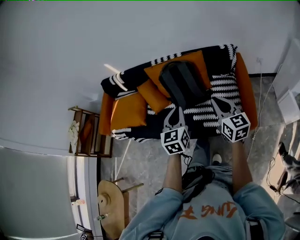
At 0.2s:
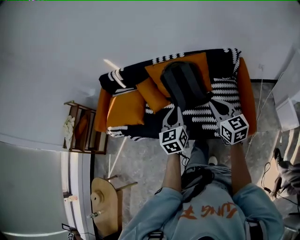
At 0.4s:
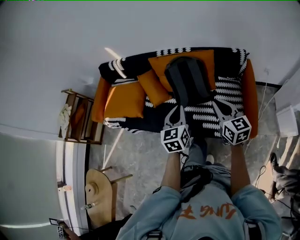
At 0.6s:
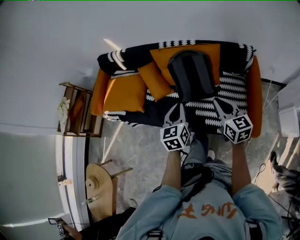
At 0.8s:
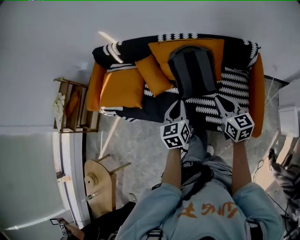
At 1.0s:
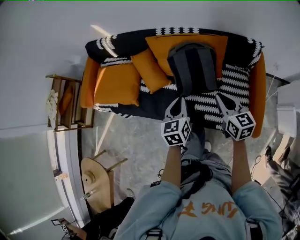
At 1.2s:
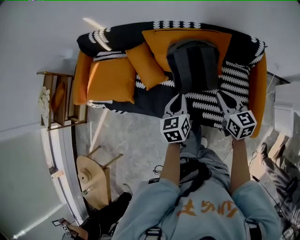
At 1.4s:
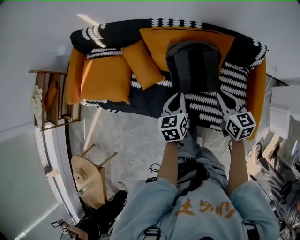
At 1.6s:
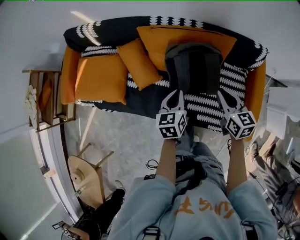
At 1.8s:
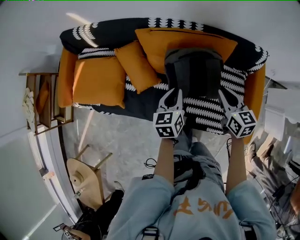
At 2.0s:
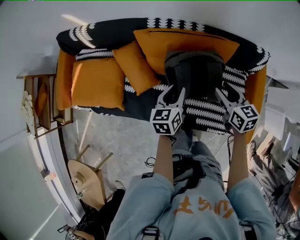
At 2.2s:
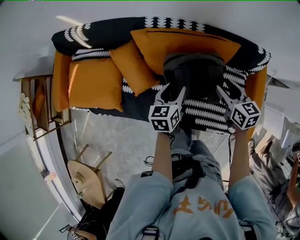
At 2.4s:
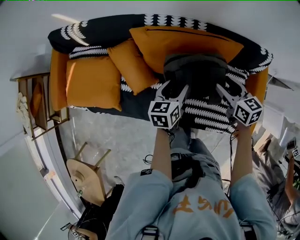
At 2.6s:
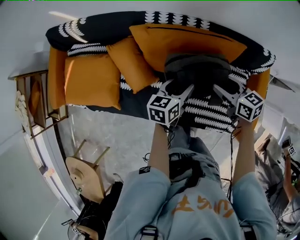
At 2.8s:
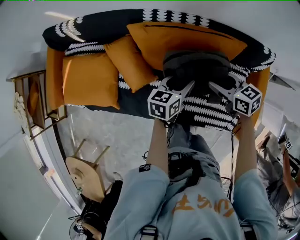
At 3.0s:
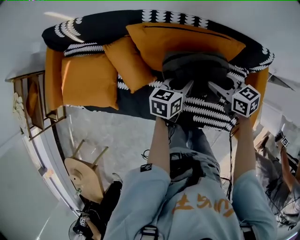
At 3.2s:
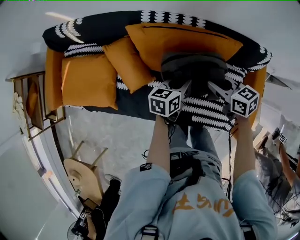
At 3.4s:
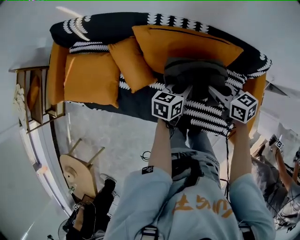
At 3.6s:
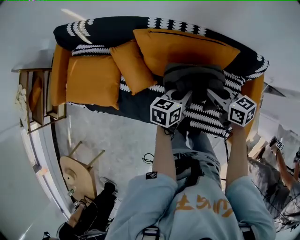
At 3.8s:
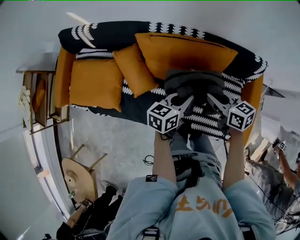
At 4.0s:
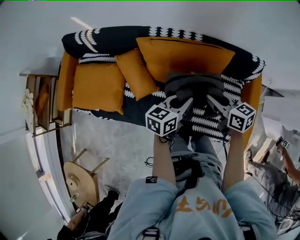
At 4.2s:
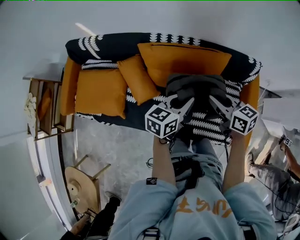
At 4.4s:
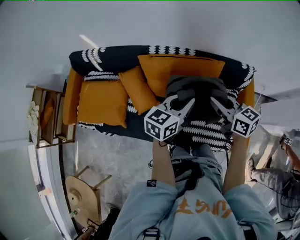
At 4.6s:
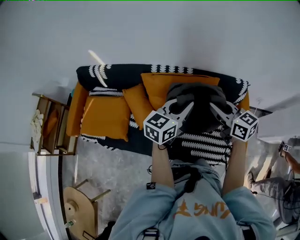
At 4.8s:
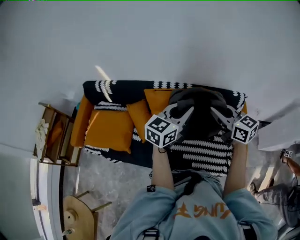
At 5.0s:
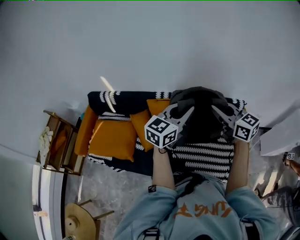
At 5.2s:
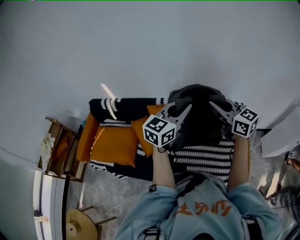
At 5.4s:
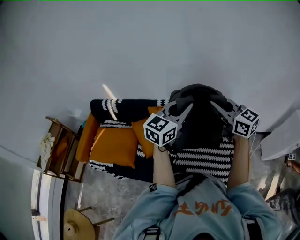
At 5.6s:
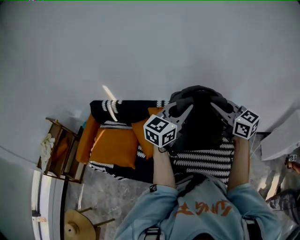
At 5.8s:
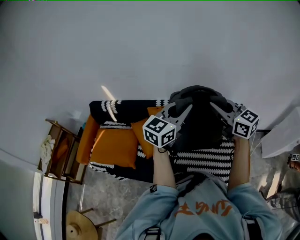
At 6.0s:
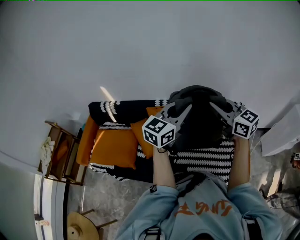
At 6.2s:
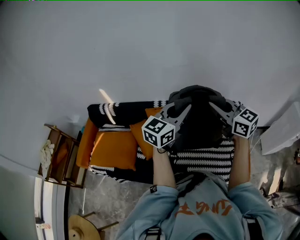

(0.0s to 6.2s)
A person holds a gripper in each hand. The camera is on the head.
0.0s - 1.6s: The grippers both shift forward and downward by about 30 cm. The left gripper rotates some 30 degrees. Meanwhile the right gripper swivels roughly 20 degrees.
1.6s - 3.2s: The right gripper goes approximately 15 cm forward and downward, changes its angle by about 30 degrees, and opens, then closes once more. Meanwhile the left gripper is displaced forward, downward and to the right by about 15 cm, rotates roughly 30 degrees, and opens, then closes once more.
3.2s - 4.6s: The grippers both shift upward by roughly 25 cm. The right gripper swivels some 30 degrees. Meanwhile the left gripper turns by about 30 degrees.
4.6s - 6.2s: The grippers both shift upward by roughly 15 cm. The right gripper swivels some 20 degrees.

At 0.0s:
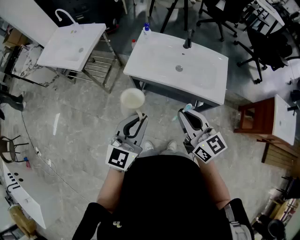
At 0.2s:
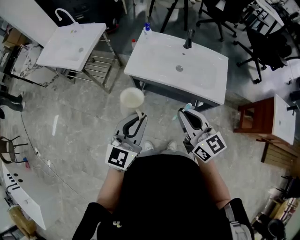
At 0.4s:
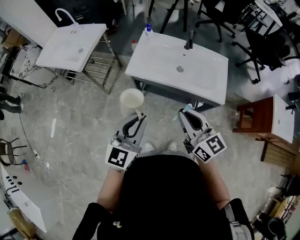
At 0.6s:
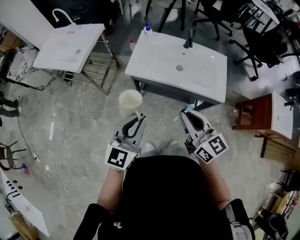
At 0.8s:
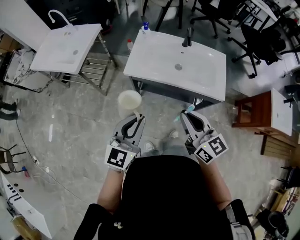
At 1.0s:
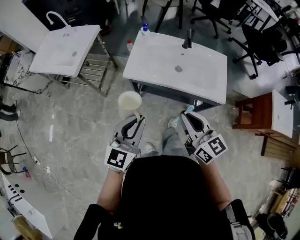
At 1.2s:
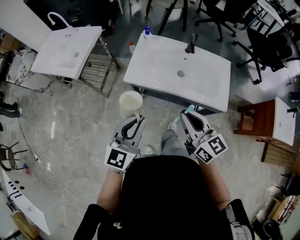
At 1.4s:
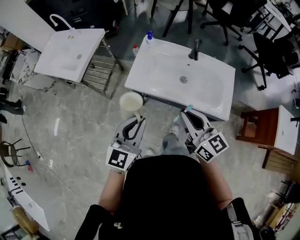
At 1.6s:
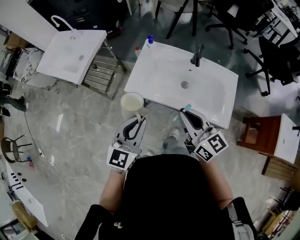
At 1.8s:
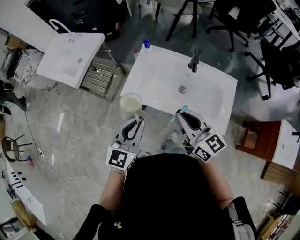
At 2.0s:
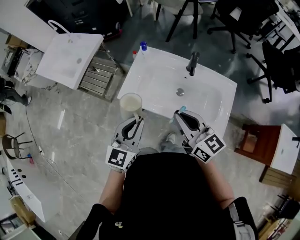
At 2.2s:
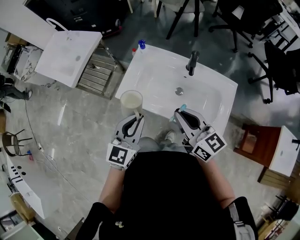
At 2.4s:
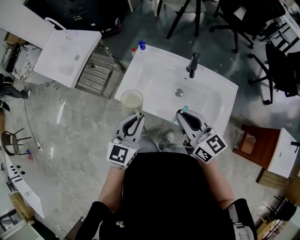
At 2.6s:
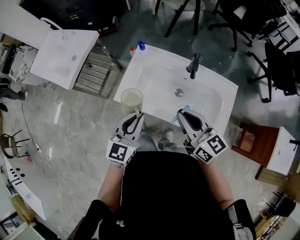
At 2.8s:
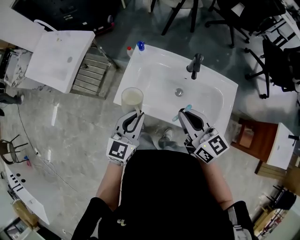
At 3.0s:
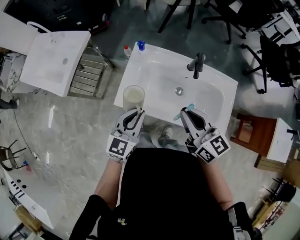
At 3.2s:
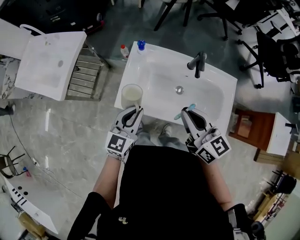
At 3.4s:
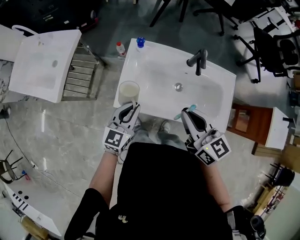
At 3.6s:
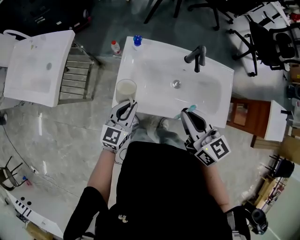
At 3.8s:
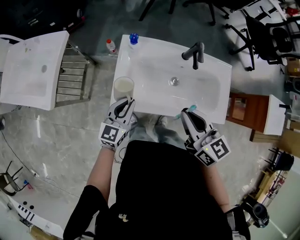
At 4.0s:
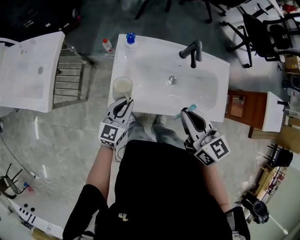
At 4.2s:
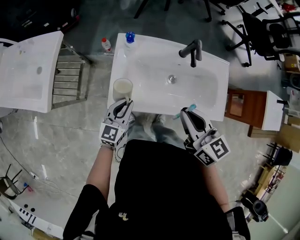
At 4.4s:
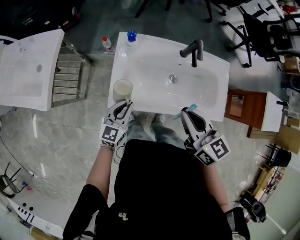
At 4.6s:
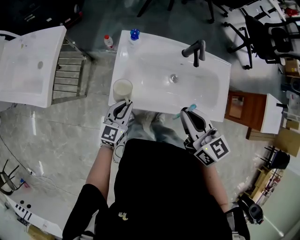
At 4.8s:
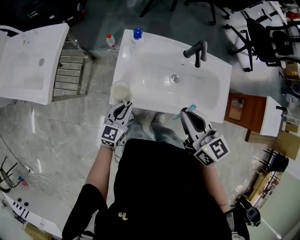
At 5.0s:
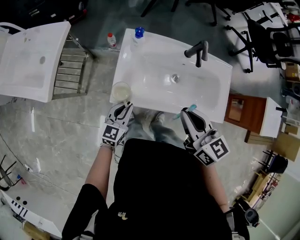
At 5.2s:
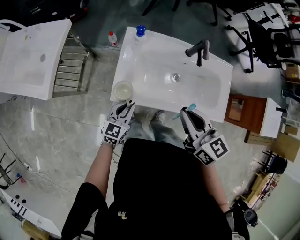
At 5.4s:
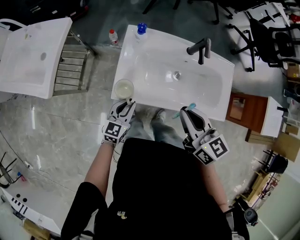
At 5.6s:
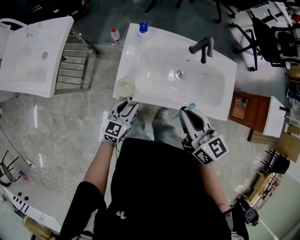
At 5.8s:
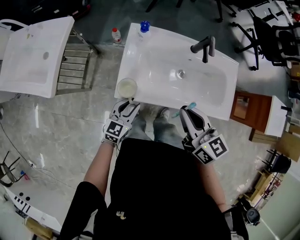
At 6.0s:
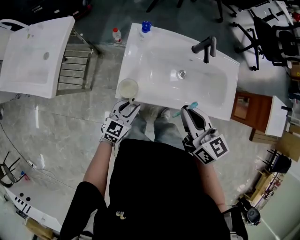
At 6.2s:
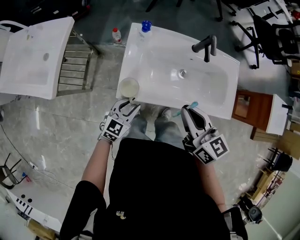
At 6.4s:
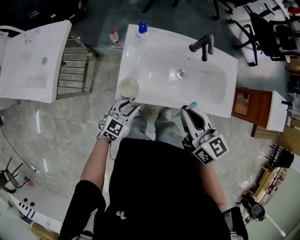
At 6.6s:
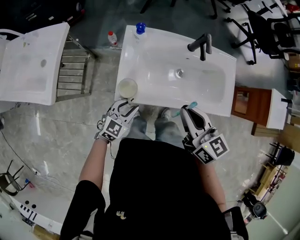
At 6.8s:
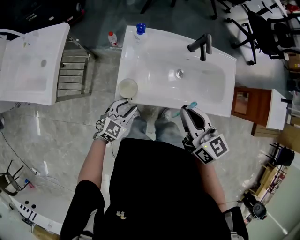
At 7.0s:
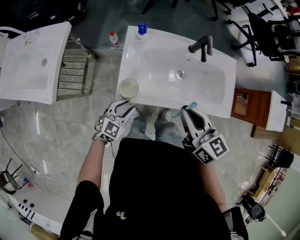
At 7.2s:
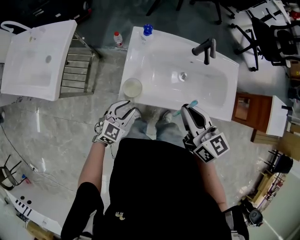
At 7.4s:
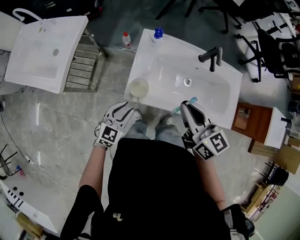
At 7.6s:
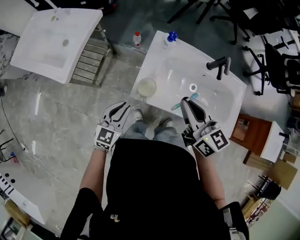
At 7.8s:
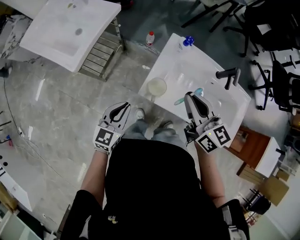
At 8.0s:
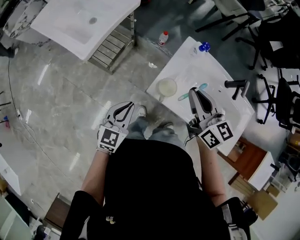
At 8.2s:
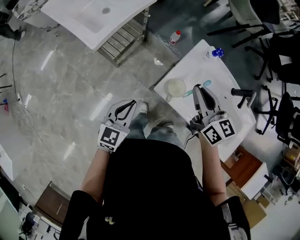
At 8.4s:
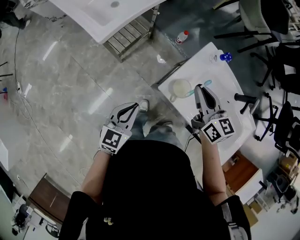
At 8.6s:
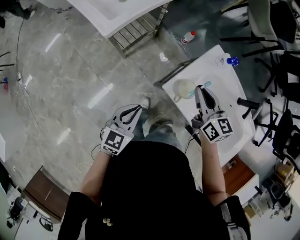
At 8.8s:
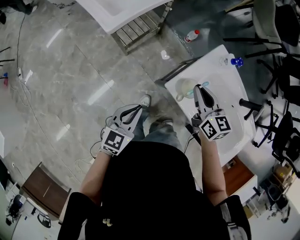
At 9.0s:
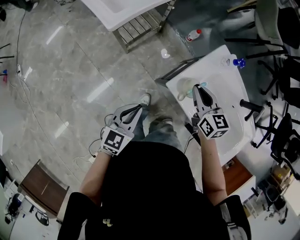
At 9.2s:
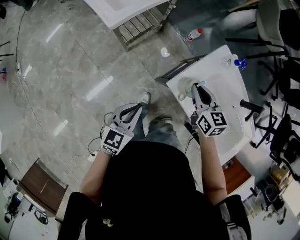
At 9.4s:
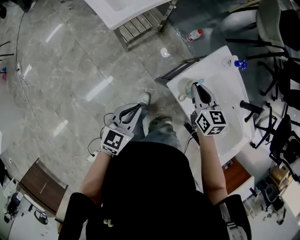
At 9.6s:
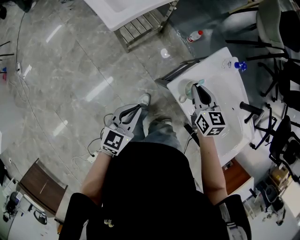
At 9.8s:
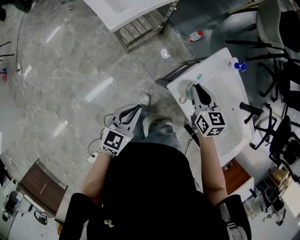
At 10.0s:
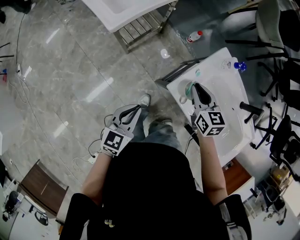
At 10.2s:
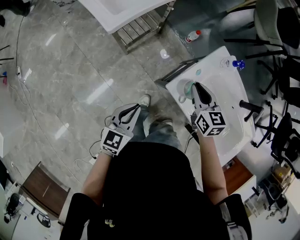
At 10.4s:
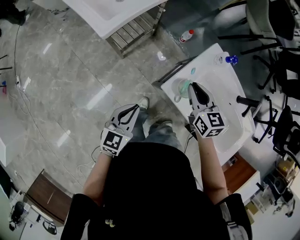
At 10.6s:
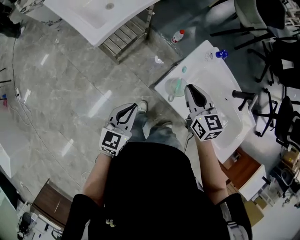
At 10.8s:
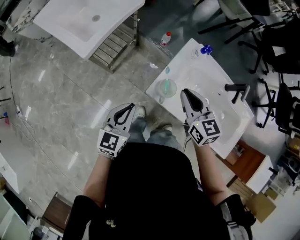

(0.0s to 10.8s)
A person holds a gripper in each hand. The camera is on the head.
0.0s - 1.6s: The two grippers go approximately 15 cm forward.
1.6s - 3.0s: The left gripper heads forward and downward, covering some 15 cm. Meanwhile the right gripper goes approximately 10 cm forward.
3.0s - 4.6s: The right gripper shifts by some 5 cm. Meanwhile the left gripper moves downward and to the left, roughly 15 cm.
4.6s - 6.2s: The left gripper ends up about 5 cm from where it was.
6.2s - 7.8s: The left gripper moves about 15 cm, and swivels about 30 degrees, while the right gripper changes place by roughly 10 cm.
7.8s - 9.2s: The right gripper moves downward and to the left, some 20 cm, and swivels roughly 20 degrees, while the left gripper moves backward and to the left, approximately 10 cm.
9.2s - 10.8s: The right gripper travels upward by some 10 cm; the left gripper travels forward by some 5 cm.

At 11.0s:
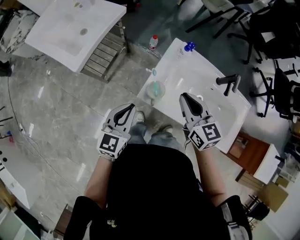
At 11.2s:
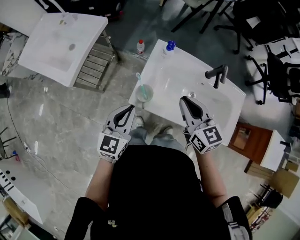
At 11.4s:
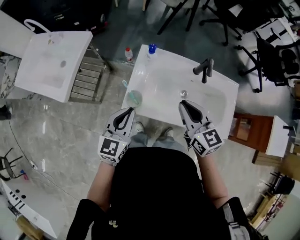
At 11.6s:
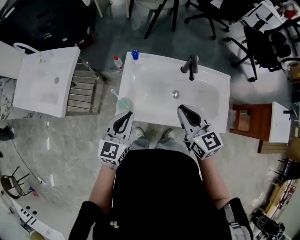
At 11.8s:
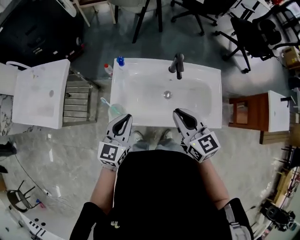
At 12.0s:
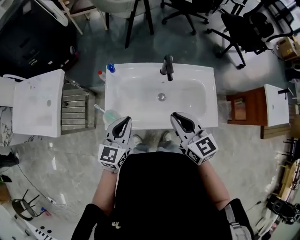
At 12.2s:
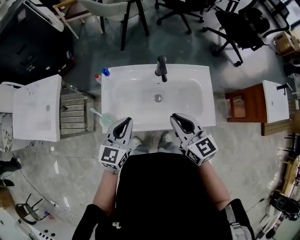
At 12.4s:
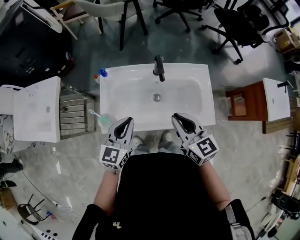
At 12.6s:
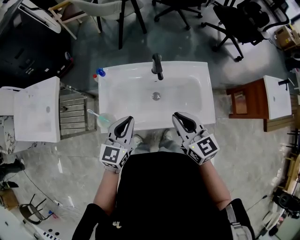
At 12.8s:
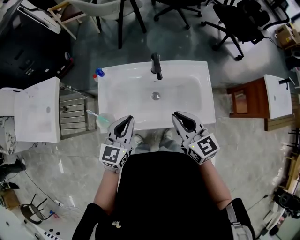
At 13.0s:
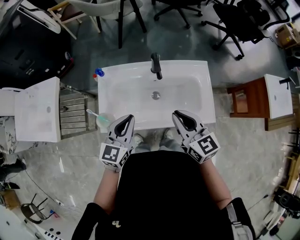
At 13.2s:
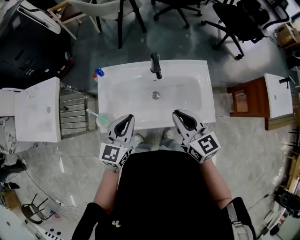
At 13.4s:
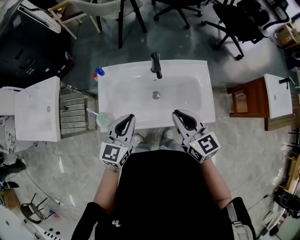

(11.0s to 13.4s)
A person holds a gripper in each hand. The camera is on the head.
11.0s - 12.2s: Both grippers move to the right, some 20 cm. The right gripper swivels roughly 20 degrees, while the left gripper rotates about 30 degrees.
12.2s - 13.4s: The grippers stay close to where they were, moving slightly.

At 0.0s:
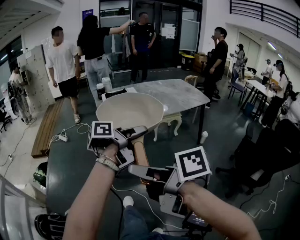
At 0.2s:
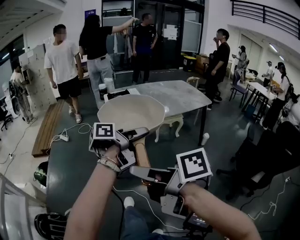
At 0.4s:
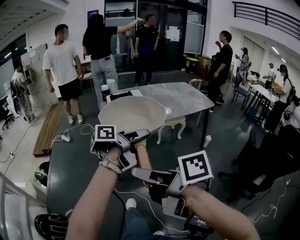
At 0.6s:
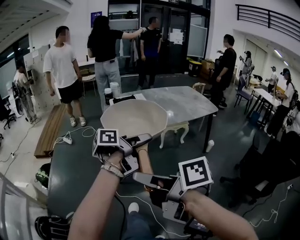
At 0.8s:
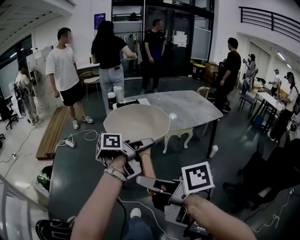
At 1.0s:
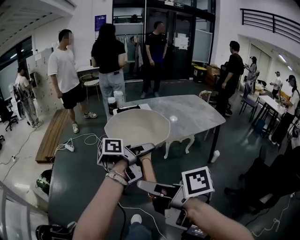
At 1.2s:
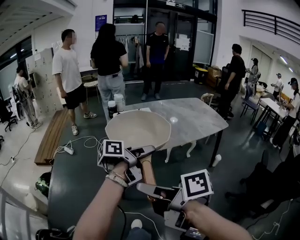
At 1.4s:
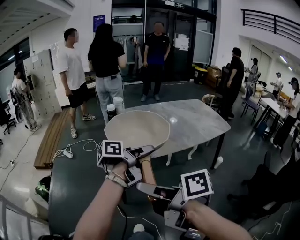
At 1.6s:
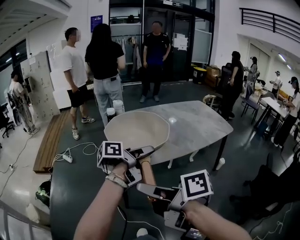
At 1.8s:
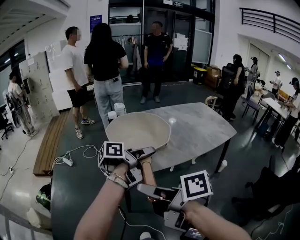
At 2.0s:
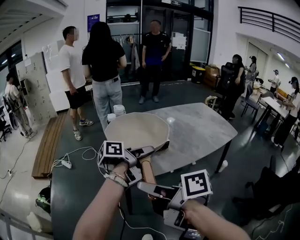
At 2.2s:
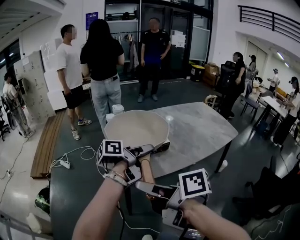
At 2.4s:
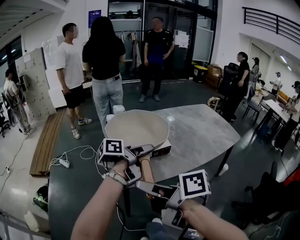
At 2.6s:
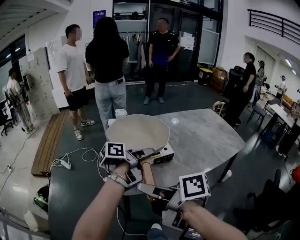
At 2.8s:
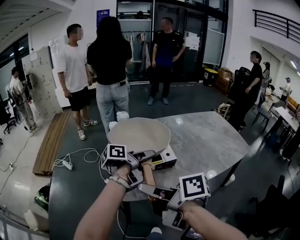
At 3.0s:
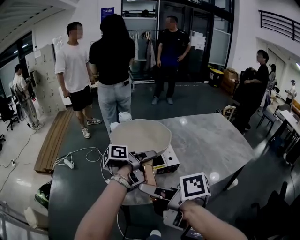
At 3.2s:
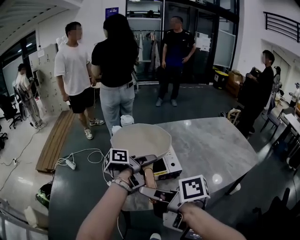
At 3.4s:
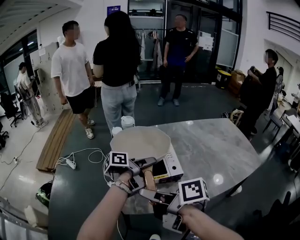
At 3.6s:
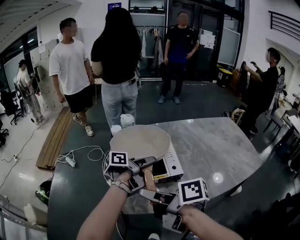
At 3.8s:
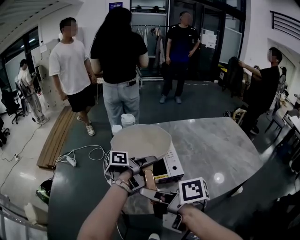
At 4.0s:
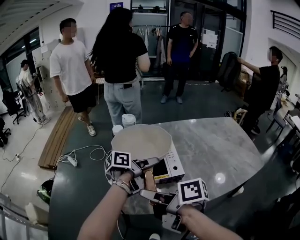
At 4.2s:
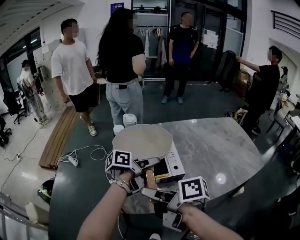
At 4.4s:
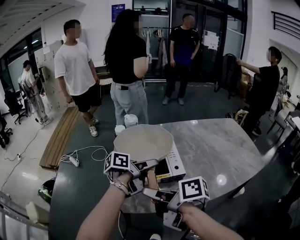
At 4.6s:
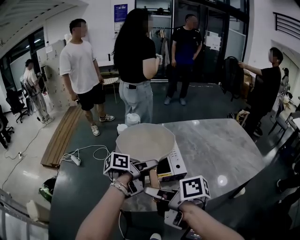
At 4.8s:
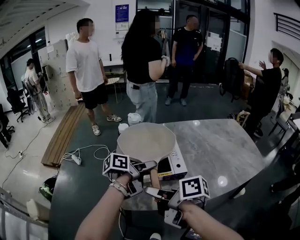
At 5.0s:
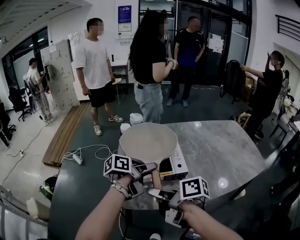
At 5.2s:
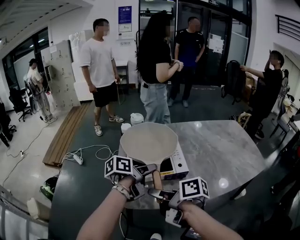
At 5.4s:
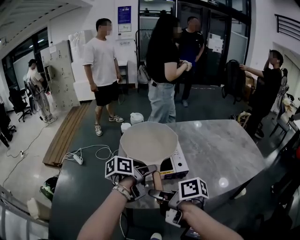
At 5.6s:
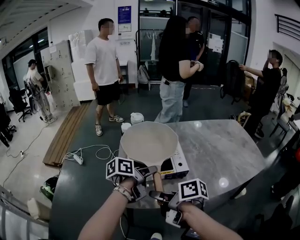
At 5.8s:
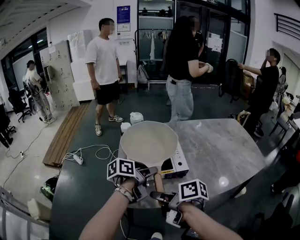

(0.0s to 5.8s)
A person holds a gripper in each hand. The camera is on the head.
0.0s - 1.4s: Both grippers move forward, about 20 cm.
1.4s - 2.8s: The two grippers go about 25 cm forward.
2.8s - 4.4s: Both grippers move forward and downward, approximately 10 cm. The left gripper opens its fingers.
4.4s - 5.8s: The left gripper changes place by about 5 cm, and closes. The right gripper is displaced downward by roughly 5 cm.
